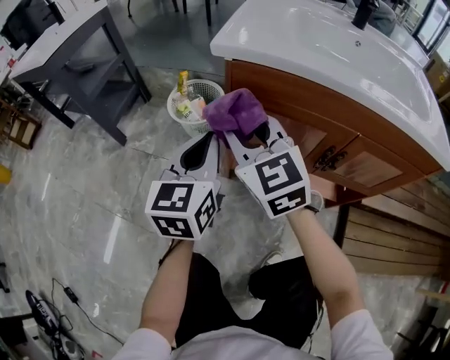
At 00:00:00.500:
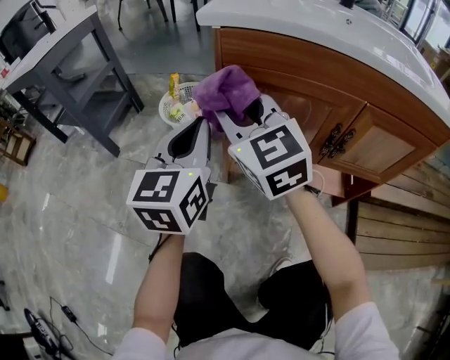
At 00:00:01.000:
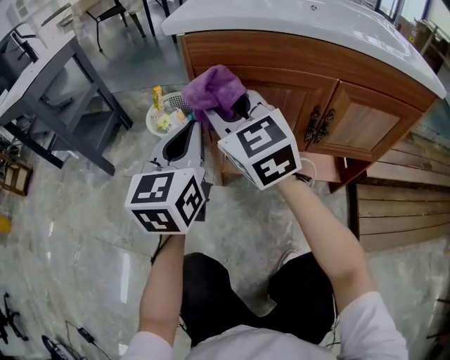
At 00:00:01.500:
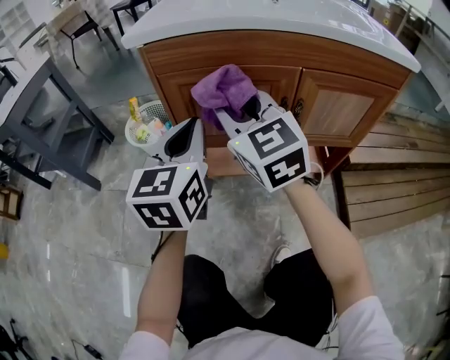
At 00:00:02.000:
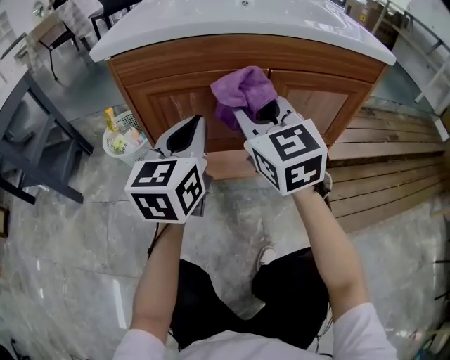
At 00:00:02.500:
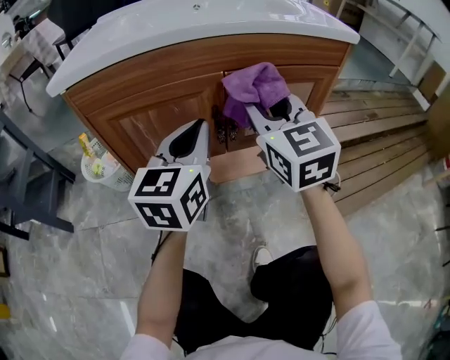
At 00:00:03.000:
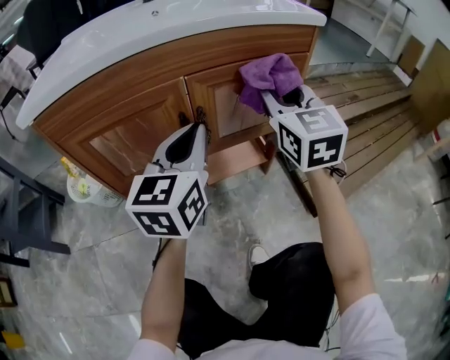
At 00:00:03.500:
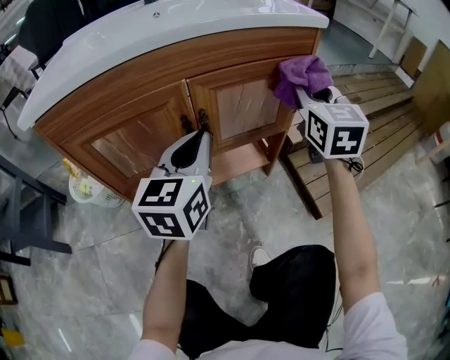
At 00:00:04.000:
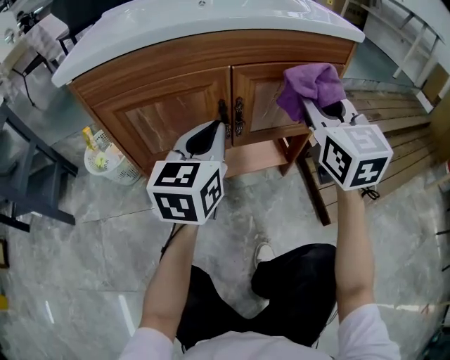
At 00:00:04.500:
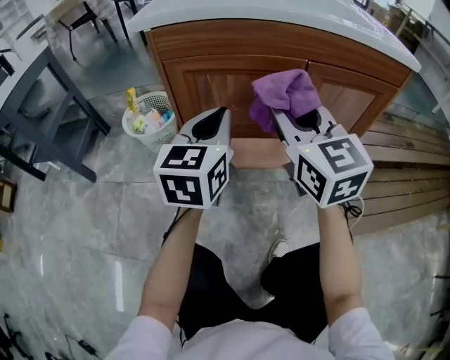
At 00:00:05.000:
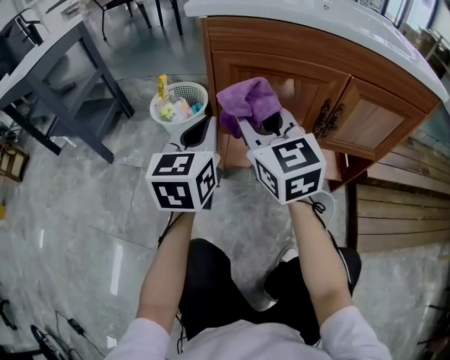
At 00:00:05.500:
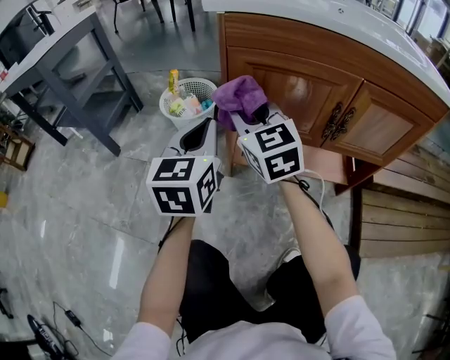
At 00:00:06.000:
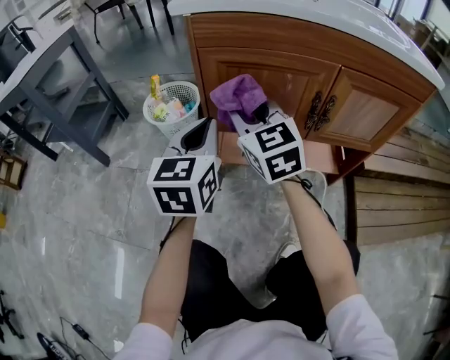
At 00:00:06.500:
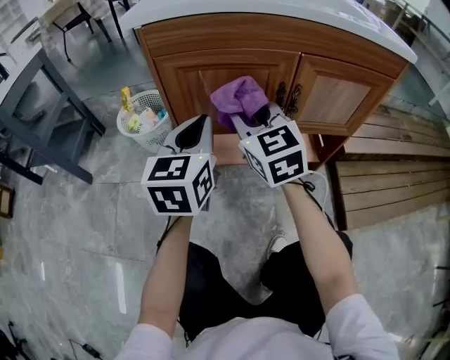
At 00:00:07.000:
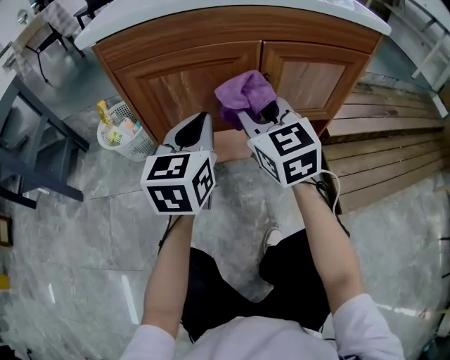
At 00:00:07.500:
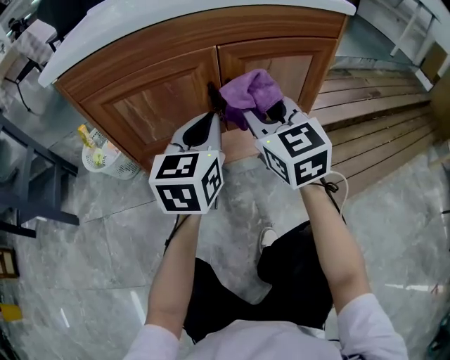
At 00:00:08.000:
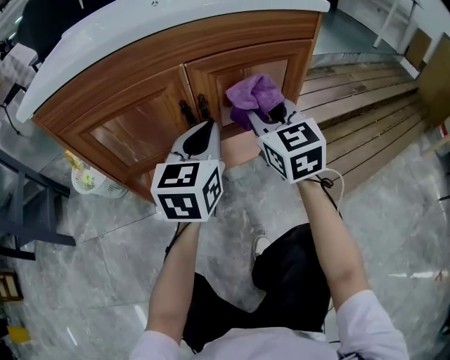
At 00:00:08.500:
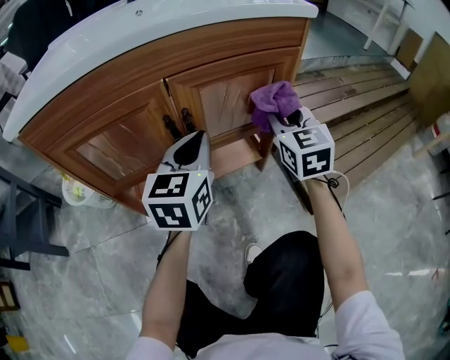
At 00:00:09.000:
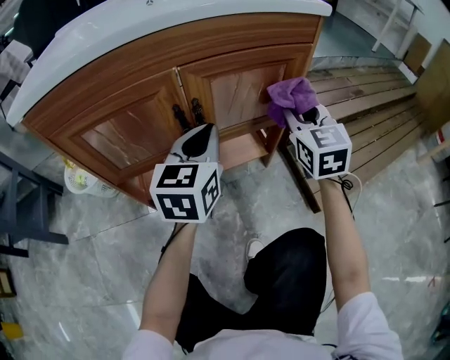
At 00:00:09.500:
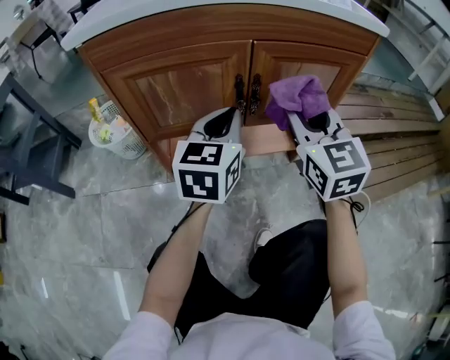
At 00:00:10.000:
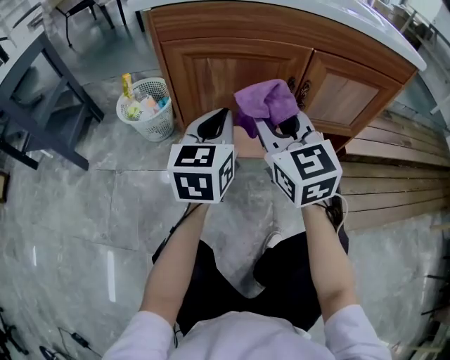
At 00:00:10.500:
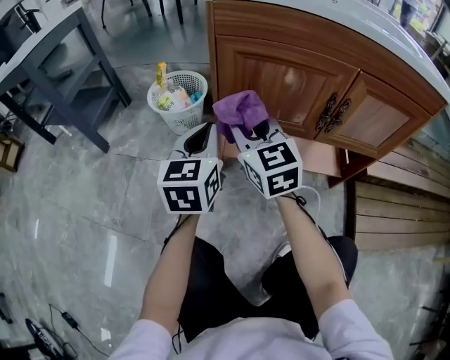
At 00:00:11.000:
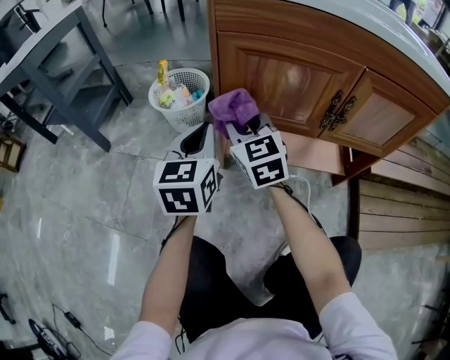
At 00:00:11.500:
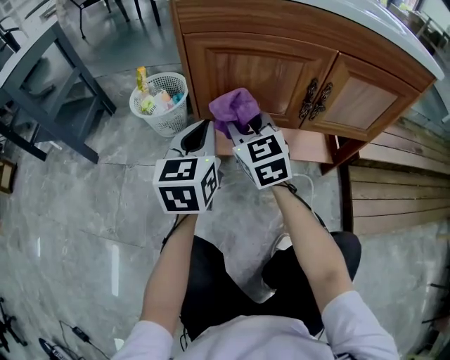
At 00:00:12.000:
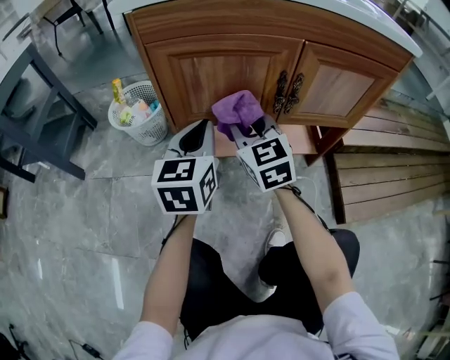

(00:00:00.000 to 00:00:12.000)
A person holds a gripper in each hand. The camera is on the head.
00:00:00.000 - 00:00:02.000: The two grippers go approximately 20 cm to the right. The right gripper changes its angle by some 30 degrees; the left gripper turns by roughly 20 degrees.
00:00:02.000 - 00:00:04.000: The right gripper changes place by approximately 20 cm, and turns by approximately 20 degrees, while the left gripper changes place by approximately 10 cm.
00:00:04.000 - 00:00:06.000: The left gripper moves roughly 20 cm, and swivels about 20 degrees, while the right gripper shifts by about 35 cm, and swivels about 30 degrees.
00:00:06.000 - 00:00:08.000: The right gripper moves roughly 30 cm, and turns by approximately 30 degrees. The left gripper changes place by approximately 25 cm, and turns by roughly 30 degrees.
00:00:08.000 - 00:00:10.000: The left gripper ends up some 20 cm from where it was. The right gripper shifts by approximately 20 cm, and swivels some 20 degrees.
00:00:10.000 - 00:00:12.000: The left gripper moves some 15 cm to the left and comes back. The right gripper heads downward, covering roughly 10 cm, and moves roughly 15 cm to the left and comes back.

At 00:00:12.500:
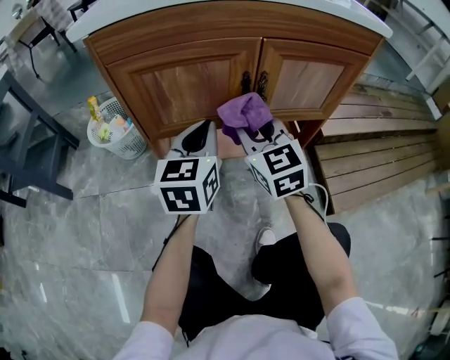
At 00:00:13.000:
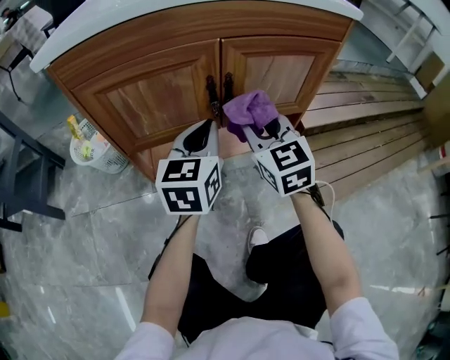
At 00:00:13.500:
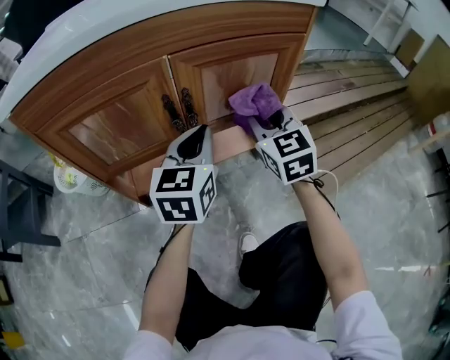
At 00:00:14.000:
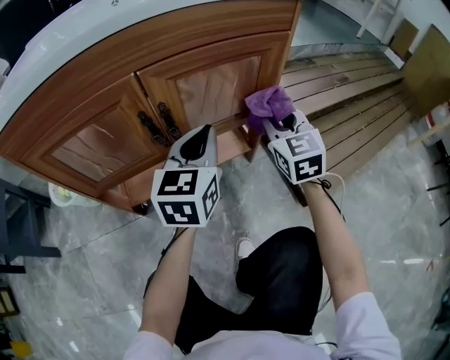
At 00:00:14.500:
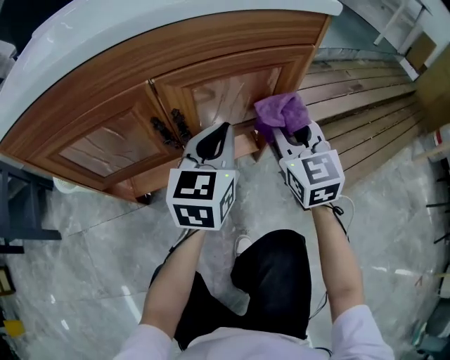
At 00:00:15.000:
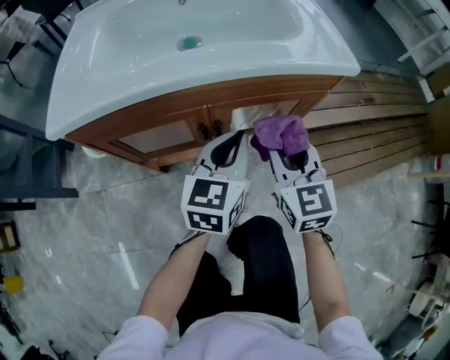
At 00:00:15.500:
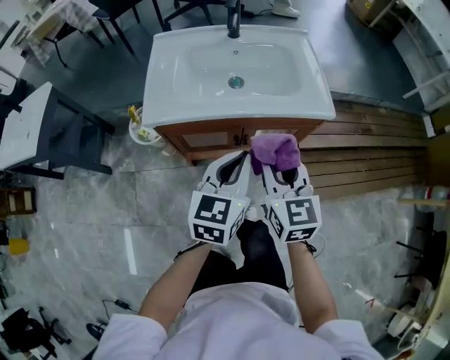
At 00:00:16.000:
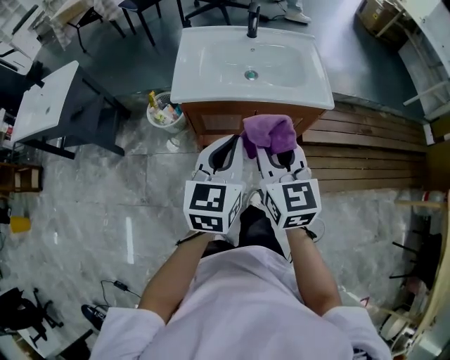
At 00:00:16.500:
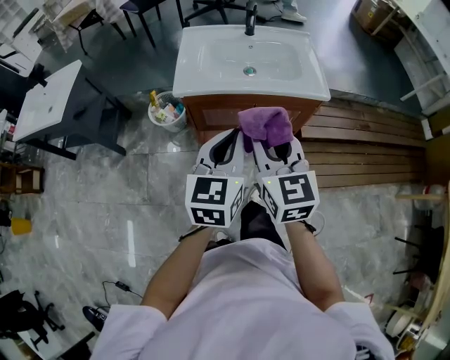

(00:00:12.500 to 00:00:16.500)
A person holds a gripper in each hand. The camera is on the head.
00:00:12.500 - 00:00:14.500: Both grippers move to the right, roughly 20 cm.
00:00:14.500 - 00:00:16.500: The right gripper shifts approximately 60 cm upward, backward and to the left, and turns by some 20 degrees. Meanwhile the left gripper heads upward and backward, covering approximately 50 cm.

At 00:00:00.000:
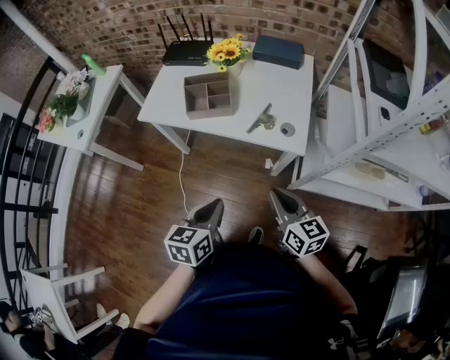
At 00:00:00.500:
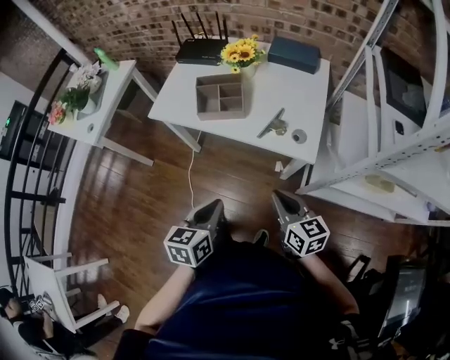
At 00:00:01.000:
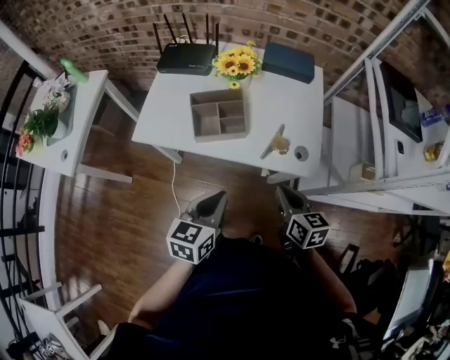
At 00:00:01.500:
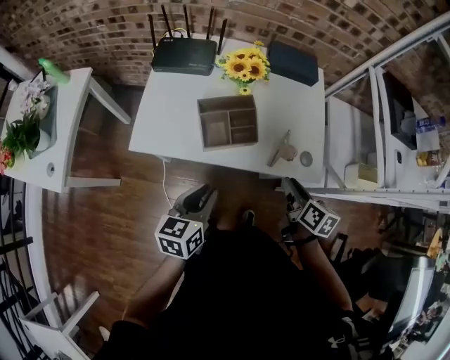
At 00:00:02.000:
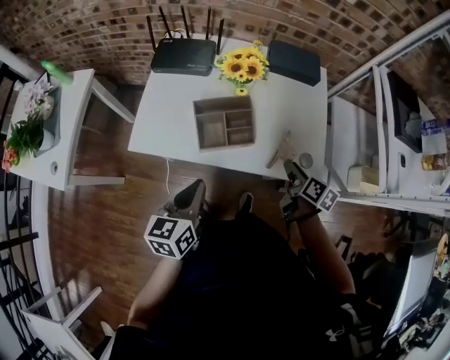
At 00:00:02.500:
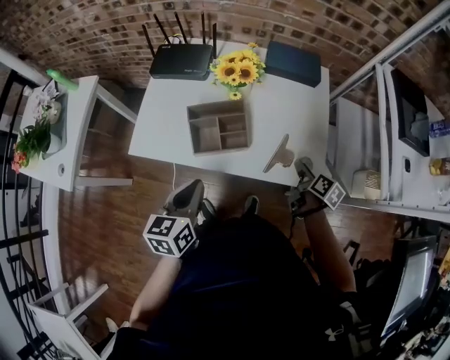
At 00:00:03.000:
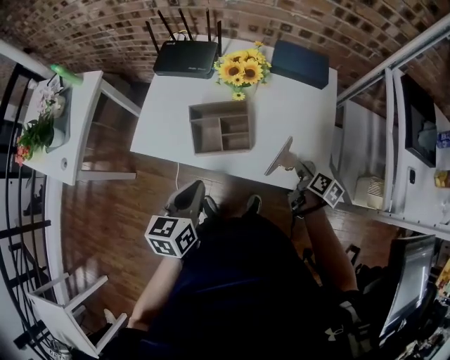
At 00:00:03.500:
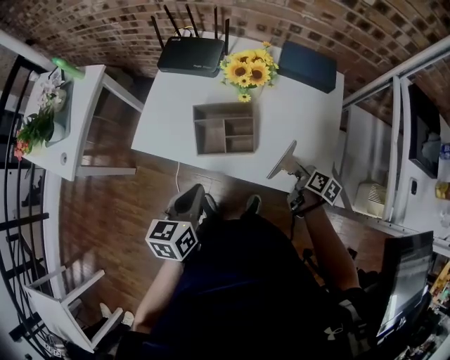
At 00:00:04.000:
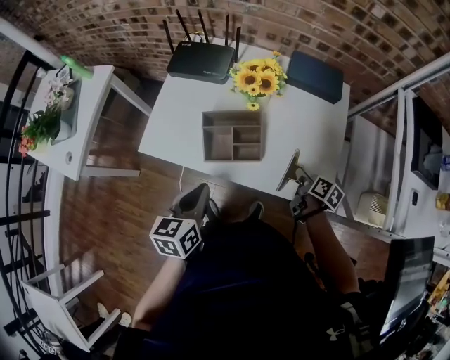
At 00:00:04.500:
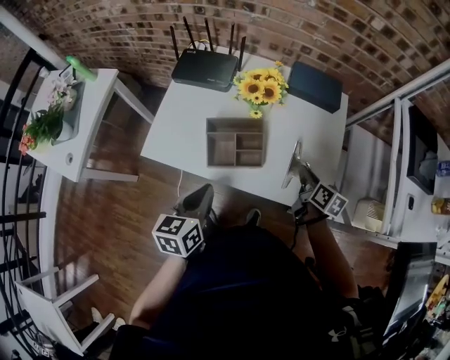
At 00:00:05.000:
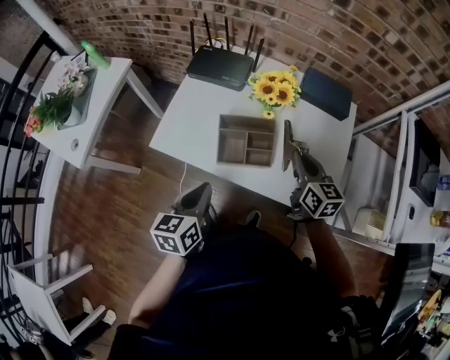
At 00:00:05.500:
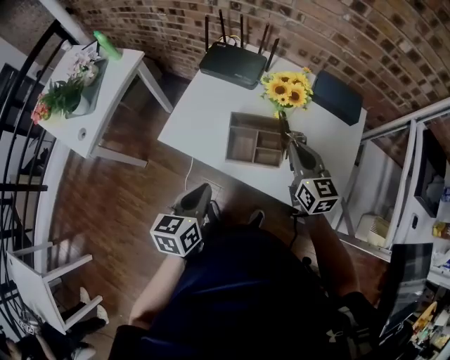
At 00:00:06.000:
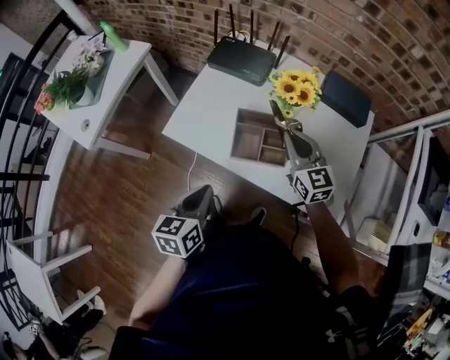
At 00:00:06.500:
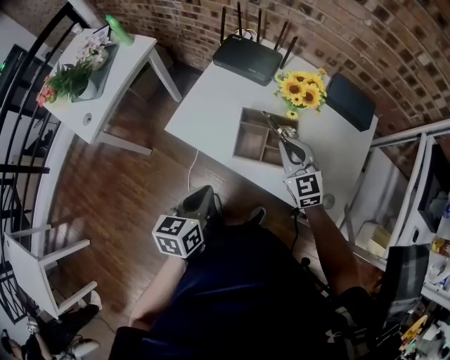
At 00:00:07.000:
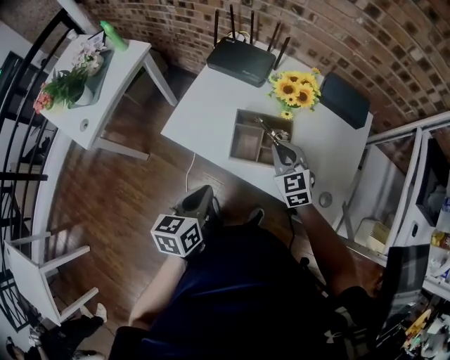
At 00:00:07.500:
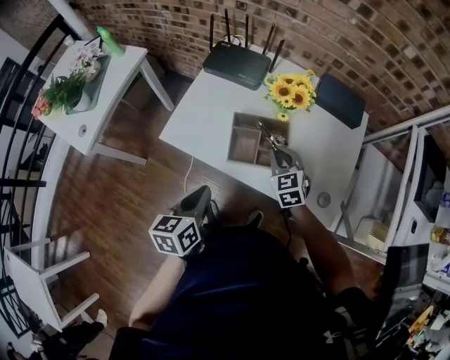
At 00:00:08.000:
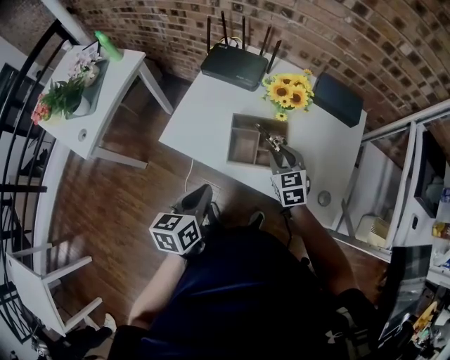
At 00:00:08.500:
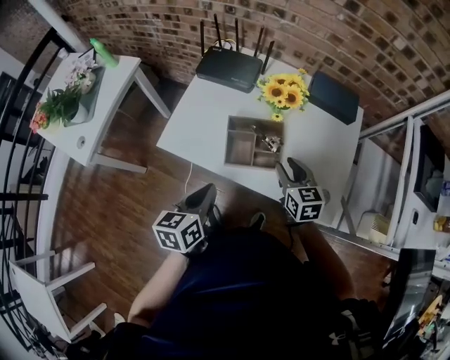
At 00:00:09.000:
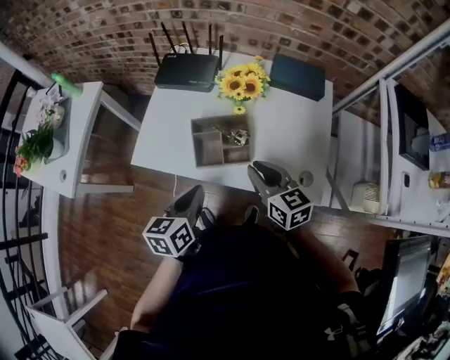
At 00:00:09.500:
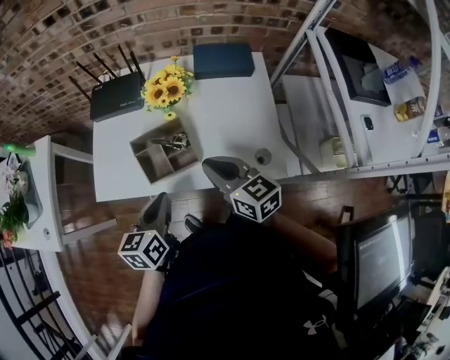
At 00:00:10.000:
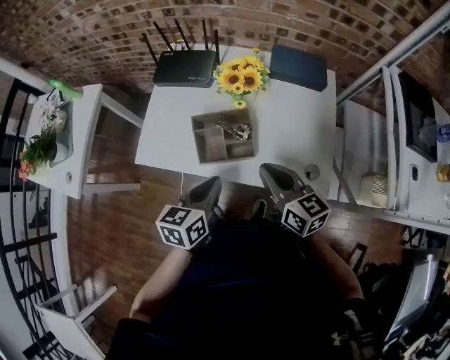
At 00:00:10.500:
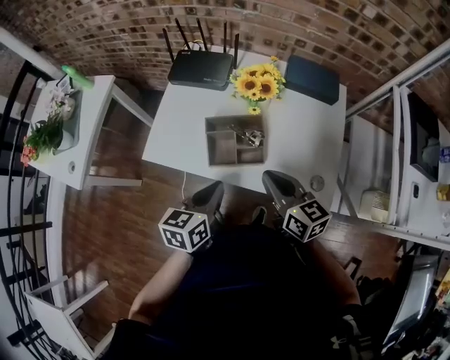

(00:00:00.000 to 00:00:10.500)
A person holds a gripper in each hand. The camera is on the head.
00:00:00.000 - 00:00:02.000: The right gripper goes roughly 25 cm forward, swivels roughly 40 degrees, and opens up, while the left gripper shifts some 30 cm forward and to the left.
00:00:02.000 - 00:00:04.000: The right gripper goes approximately 10 cm downward and forward, and closes.
00:00:04.000 - 00:00:06.500: The right gripper heads to the left, upward and forward, covering approximately 30 cm, and twists approximately 80 degrees counterclockwise, seen from behind. The left gripper goes approximately 5 cm to the left.
00:00:06.500 - 00:00:08.500: The right gripper heads to the right, covering approximately 5 cm, swivels some 30 degrees, and opens its fingers.
00:00:08.500 - 00:00:10.500: The left gripper goes roughly 5 cm to the right; the right gripper goes roughly 10 cm upward and backward, changes its angle by roughly 20 degrees, and closes.
